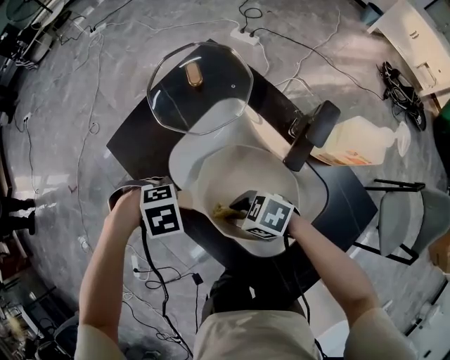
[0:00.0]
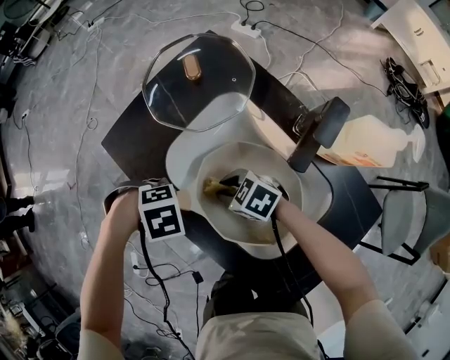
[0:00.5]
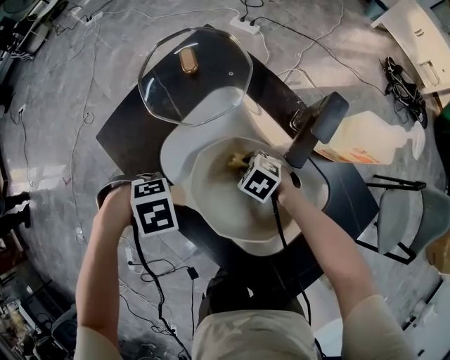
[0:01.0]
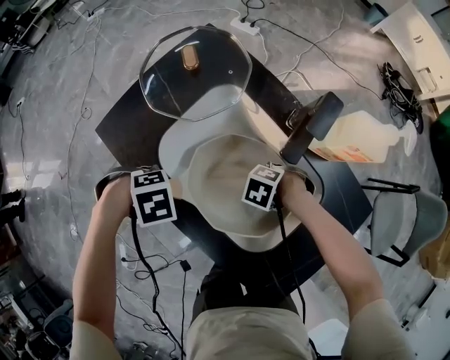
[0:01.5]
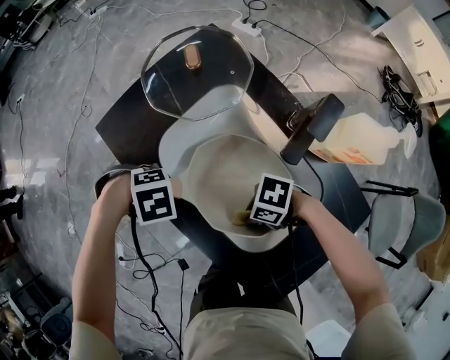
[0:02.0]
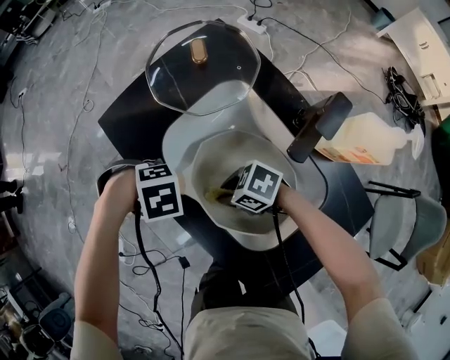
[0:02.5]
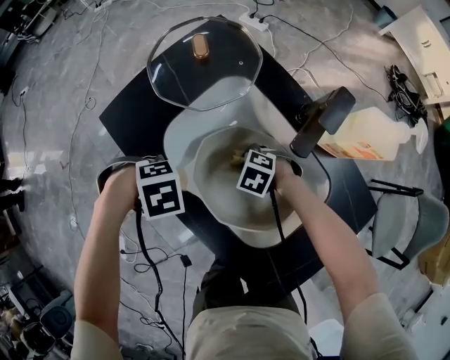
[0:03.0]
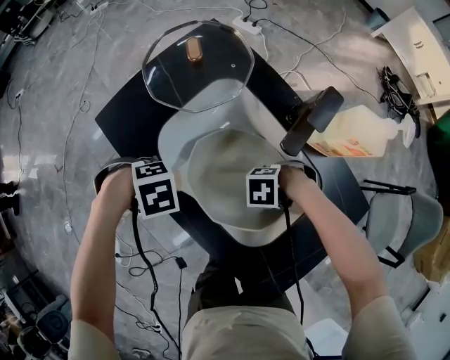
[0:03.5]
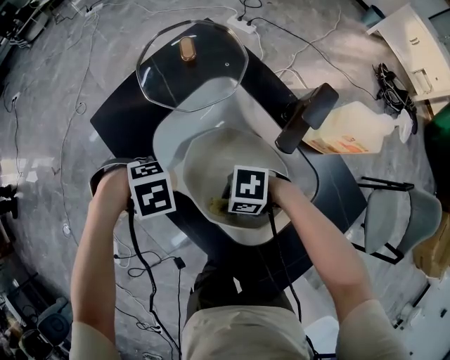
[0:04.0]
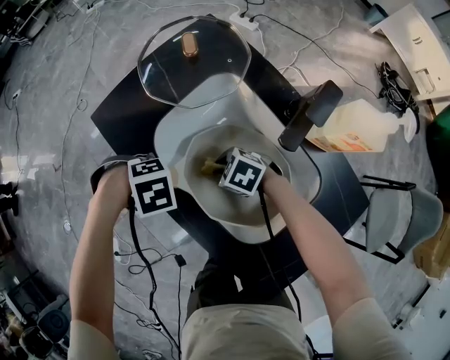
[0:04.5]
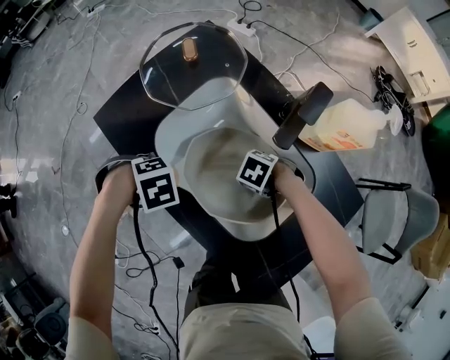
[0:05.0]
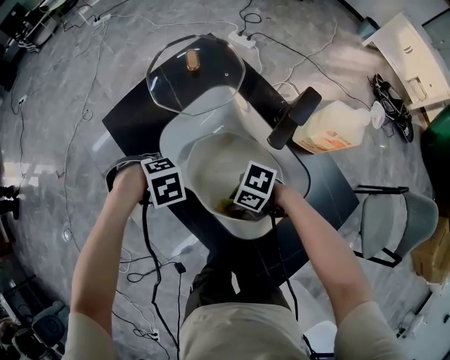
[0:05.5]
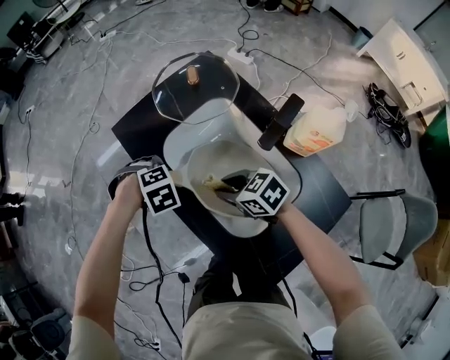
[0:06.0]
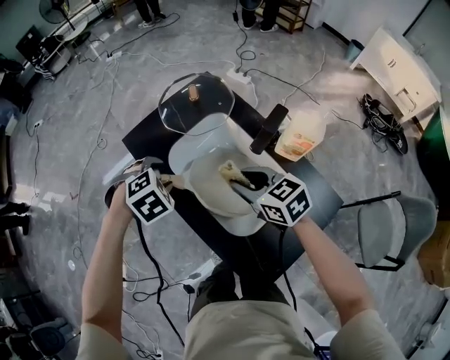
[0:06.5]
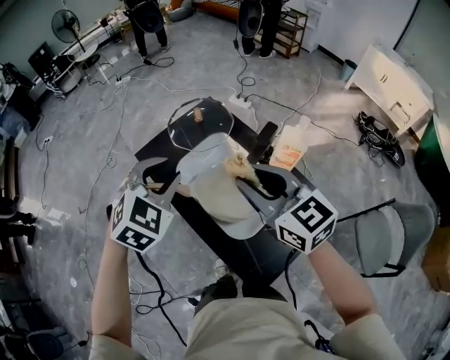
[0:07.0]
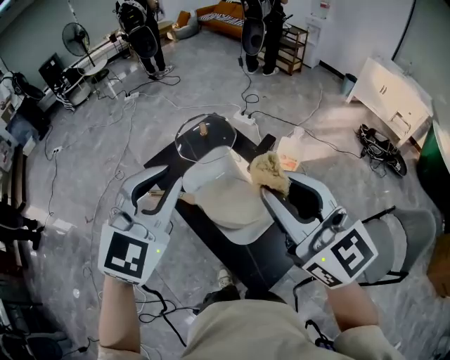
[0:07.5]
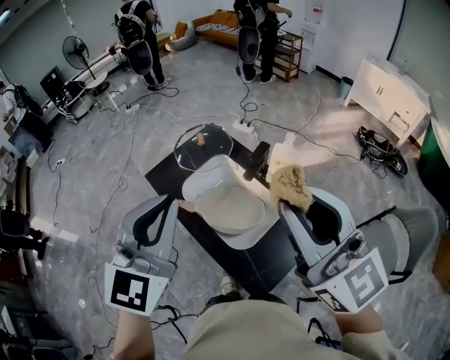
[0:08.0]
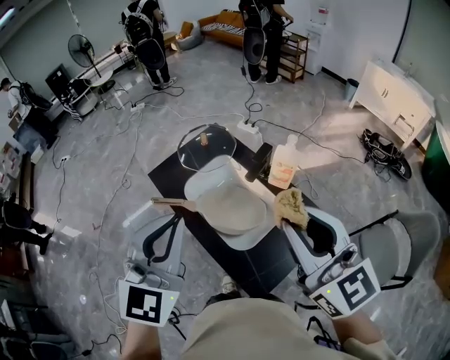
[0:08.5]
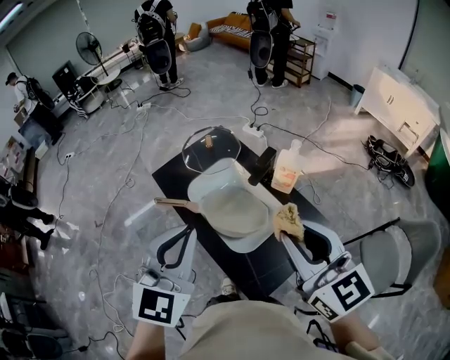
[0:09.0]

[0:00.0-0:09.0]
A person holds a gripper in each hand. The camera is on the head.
0:00.0 to 0:02.0: The right gripper travels downward and back again, about 10 cm each way, and changes its angle by some 30 degrees.
0:02.0 to 0:04.5: The right gripper goes up and down, roughly 10 cm each way, reversing 2 times, and rotates approximately 30 degrees.
0:04.5 to 0:07.0: Both grippers travel together upward, approximately 40 cm. The right gripper points its fingers some 50 degrees further upward, while the left gripper angles its fingers upward, by some 40 degrees.
0:07.0 to 0:09.0: The left gripper shifts about 20 cm backward and upward, changes its angle by about 30 degrees, and closes. The right gripper travels backward, upward and to the right by some 20 cm.

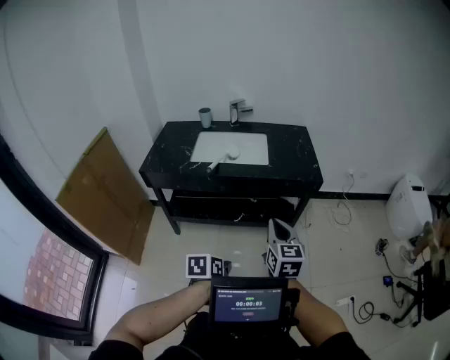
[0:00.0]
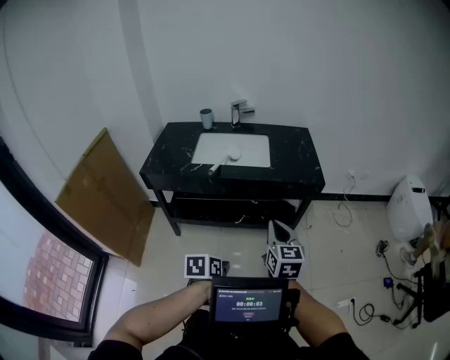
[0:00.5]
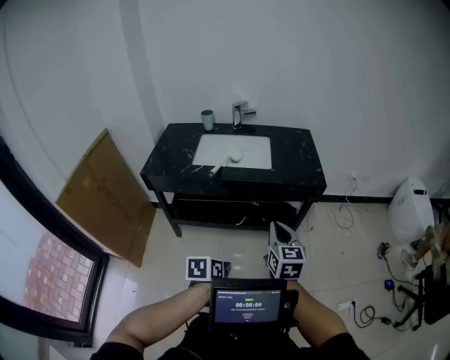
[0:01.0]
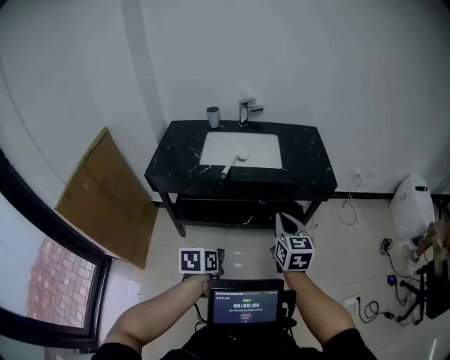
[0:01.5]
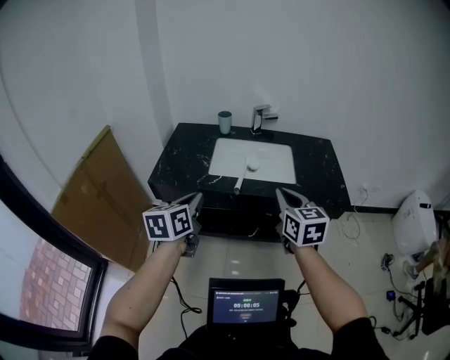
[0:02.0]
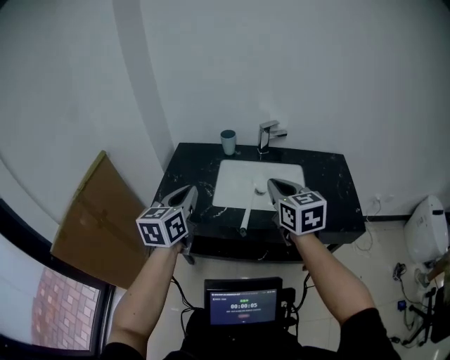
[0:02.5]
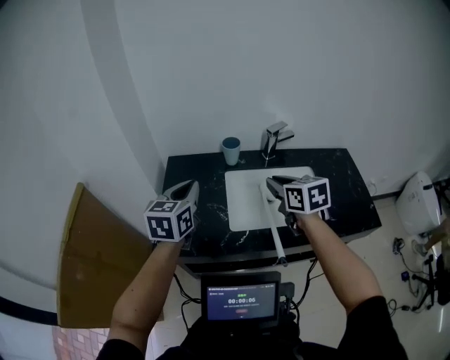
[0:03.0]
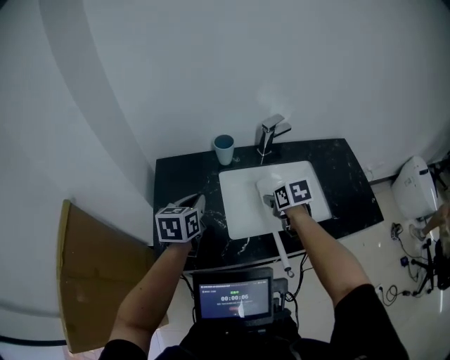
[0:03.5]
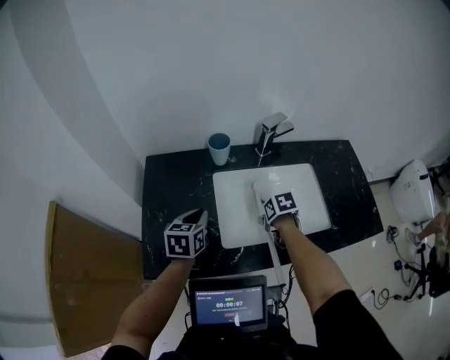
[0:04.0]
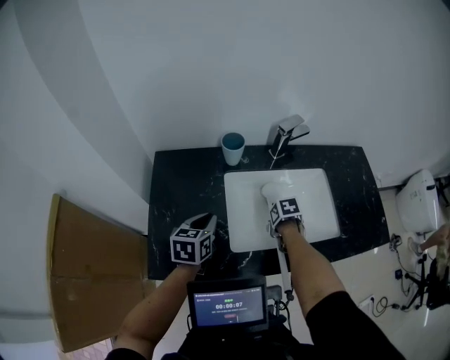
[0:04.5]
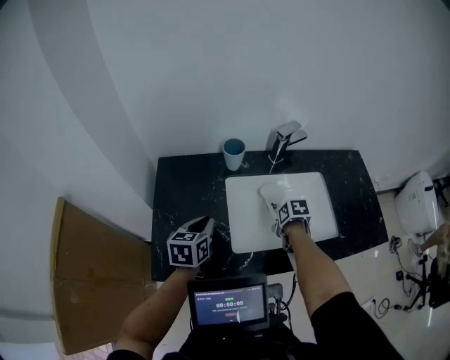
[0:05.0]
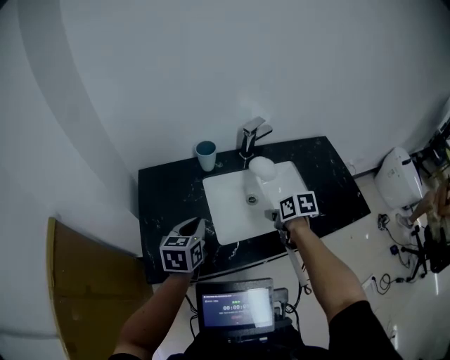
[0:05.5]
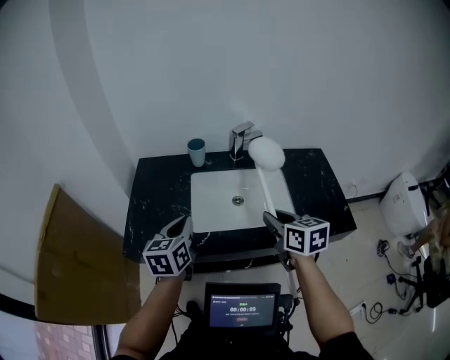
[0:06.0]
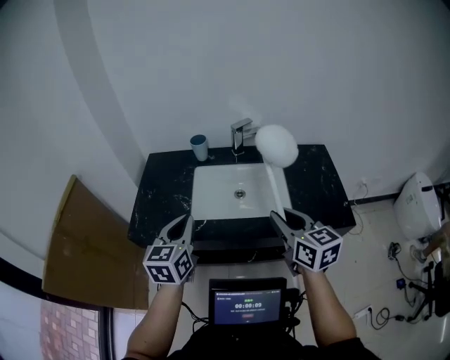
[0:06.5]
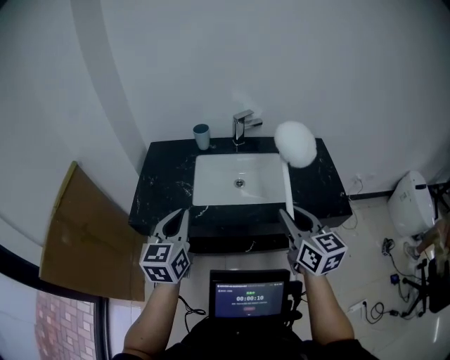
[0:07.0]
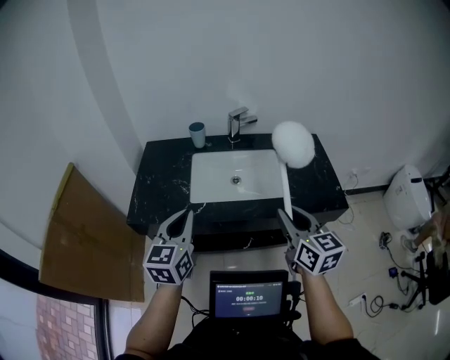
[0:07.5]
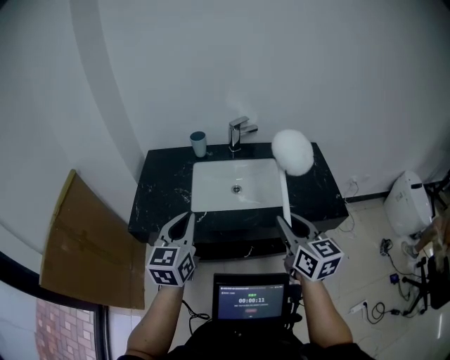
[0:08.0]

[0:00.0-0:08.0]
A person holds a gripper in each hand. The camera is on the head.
0:00.0 to 0:02.0: The right gripper goes approximately 30 cm forward, to the left and upward. Meanwhile the left gripper travels to the left, forward and upward by about 40 cm, and turns by approximately 40 degrees.
0:02.0 to 0:04.0: The pair of grippers is taken forward, roughly 50 cm. The right gripper goes about 30 cm downward, tilts its fingers some 60 degrees downward, and opens its fingers; the left gripper rotates some 20 degrees.
0:04.0 to 0:06.0: The left gripper changes place by approximately 25 cm. Meanwhile the right gripper heads upward, covering about 25 cm, and points its fingers roughly 40 degrees further upward.
0:06.0 to 0:08.0: The left gripper moves backward and upward, about 20 cm, while the right gripper is displaced backward by about 20 cm.

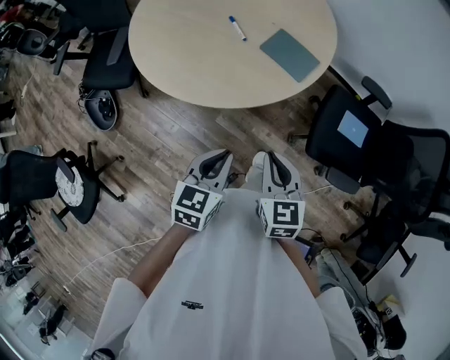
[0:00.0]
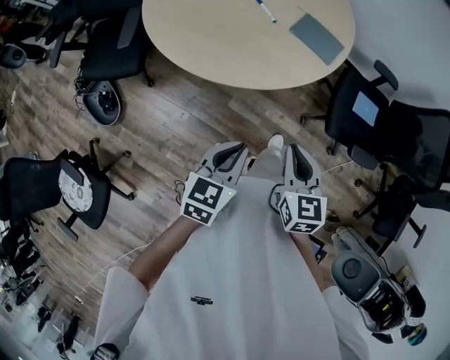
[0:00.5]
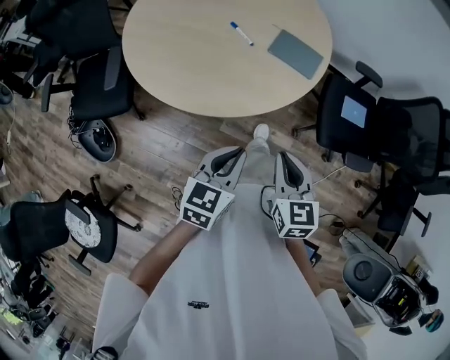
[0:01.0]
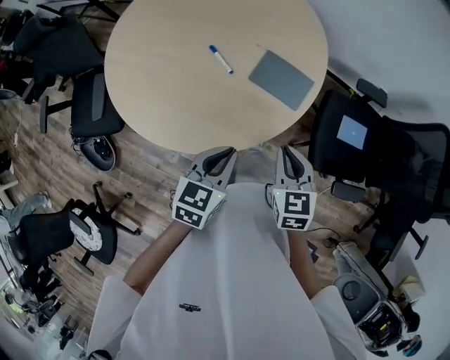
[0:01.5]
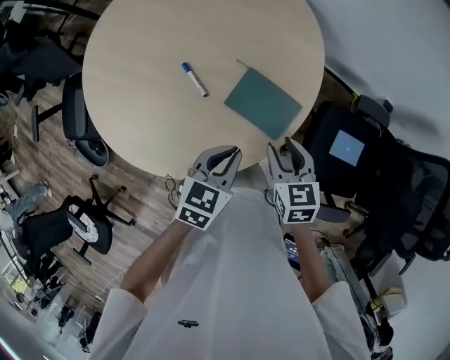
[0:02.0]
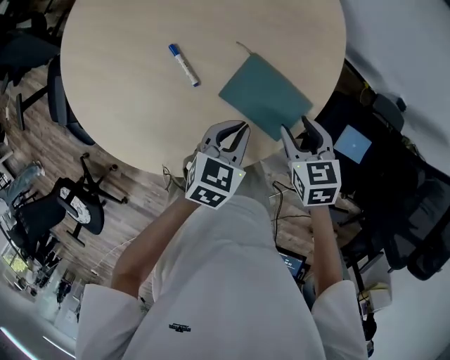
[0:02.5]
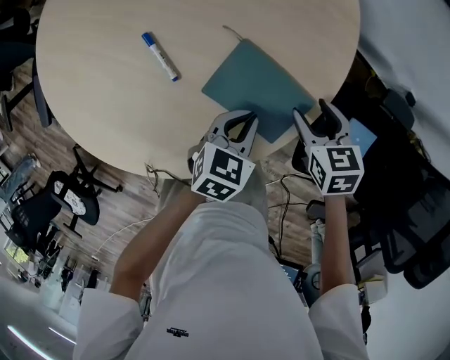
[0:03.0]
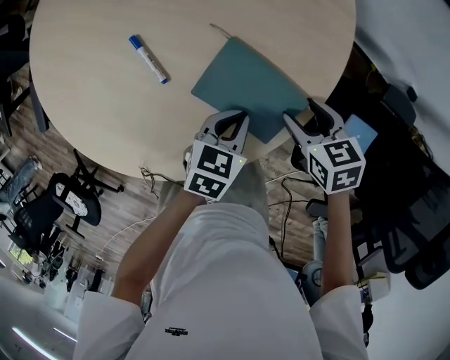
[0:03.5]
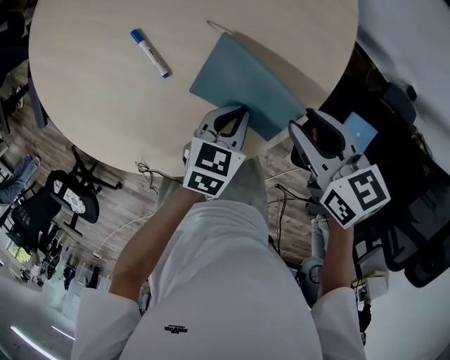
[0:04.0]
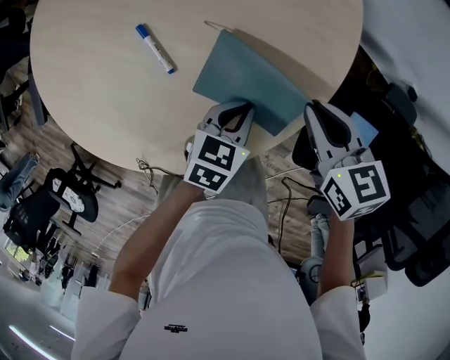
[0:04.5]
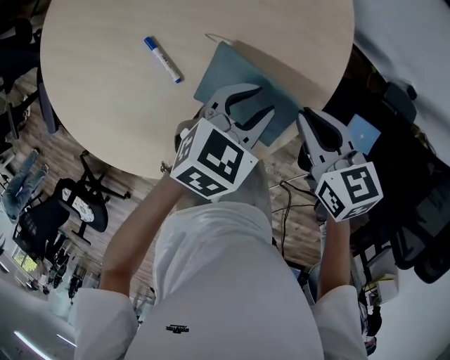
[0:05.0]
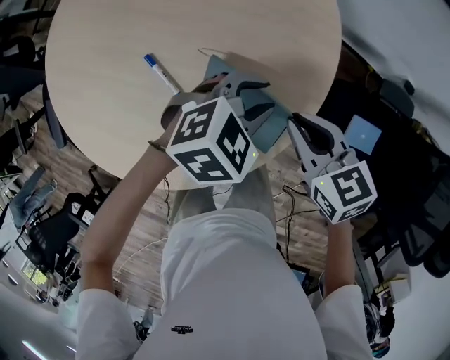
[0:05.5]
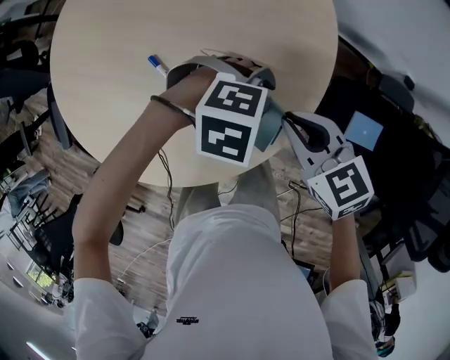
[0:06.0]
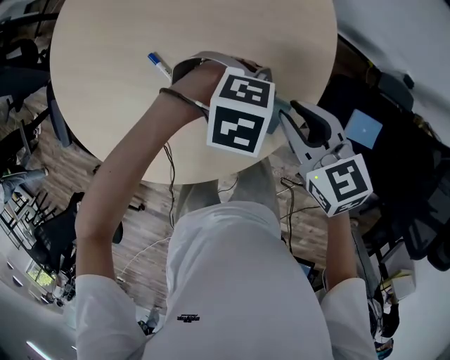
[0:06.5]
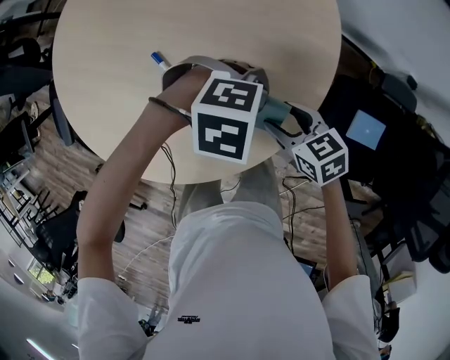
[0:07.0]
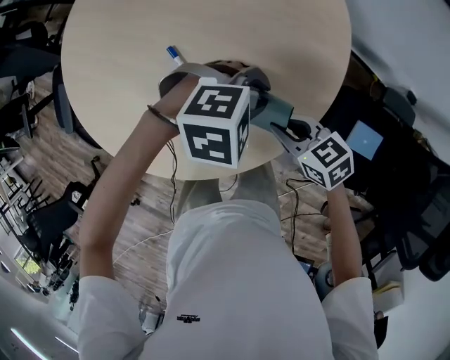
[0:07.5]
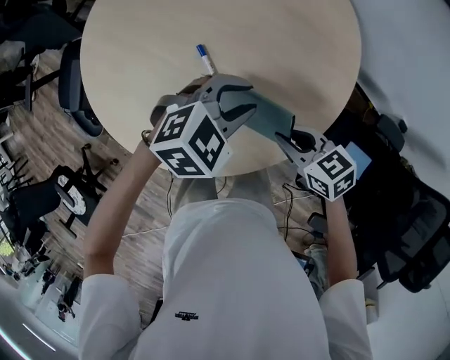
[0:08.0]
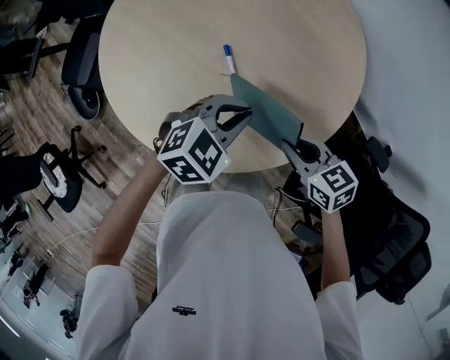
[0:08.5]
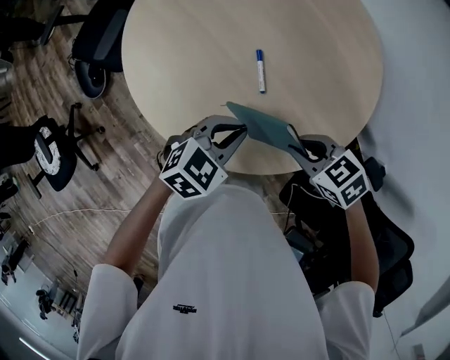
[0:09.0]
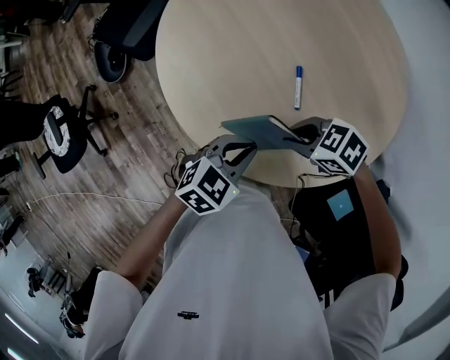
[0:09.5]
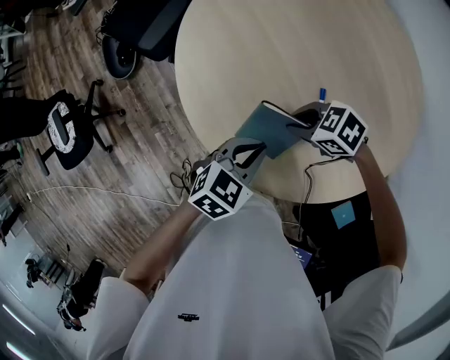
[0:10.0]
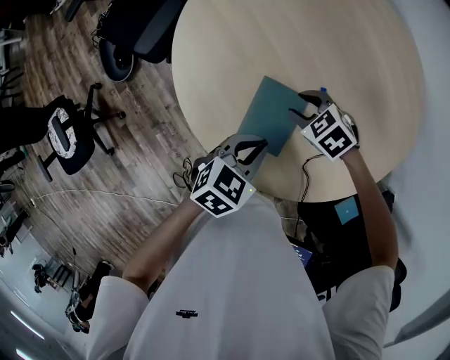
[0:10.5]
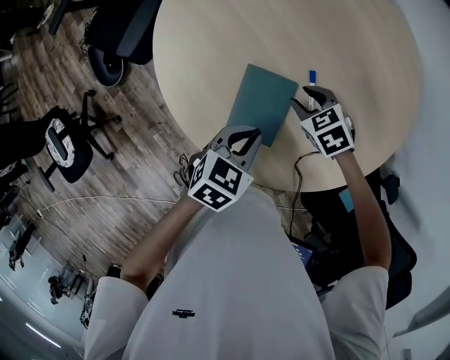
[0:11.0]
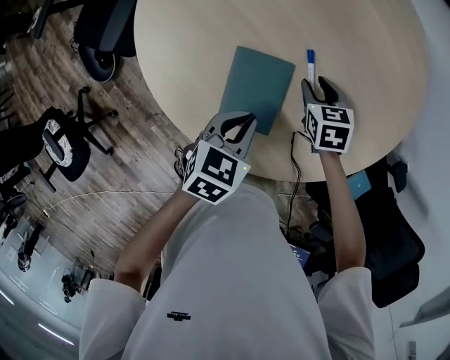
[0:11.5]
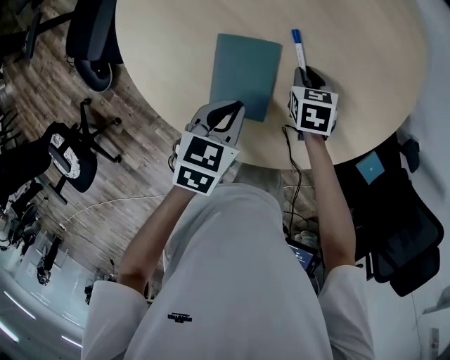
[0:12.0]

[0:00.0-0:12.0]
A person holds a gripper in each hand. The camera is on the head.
0:00.0 to 0:02.0: Both grippers move forward, some 40 cm. The right gripper opens its fingers.
0:02.0 to 0:04.0: The left gripper goes about 20 cm downward; the right gripper goes approximately 15 cm downward, forward and to the right, and rotates approximately 20 degrees.
0:04.0 to 0:06.0: The left gripper travels upward by approximately 10 cm, twists some 70 degrees clockwise, seen from behind, and opens, while the right gripper changes place by some 5 cm, and closes its fingers.
0:06.0 to 0:08.0: The right gripper goes downward and returns, roughly 10 cm each way, swivels about 20 degrees, and opens, then closes once more. Meanwhile the left gripper shifts by approximately 15 cm, and changes its angle by roughly 50 degrees.
0:08.0 to 0:10.0: The right gripper moves roughly 35 cm, and changes its angle by about 60 degrees; the left gripper moves approximately 35 cm, twists approximately 50 degrees counterclockwise, seen from behind, and closes its fingers.
0:10.0 to 0:12.0: The right gripper ends up some 20 cm from where it was, swivels roughly 80 degrees, and opens, then closes once more. Meanwhile the left gripper moves downward, approximately 10 cm.
